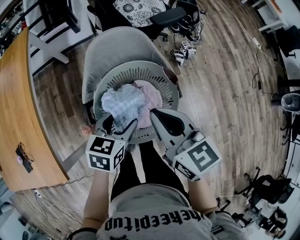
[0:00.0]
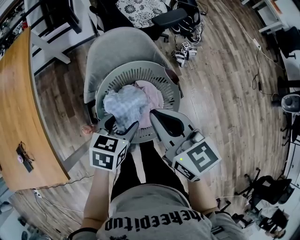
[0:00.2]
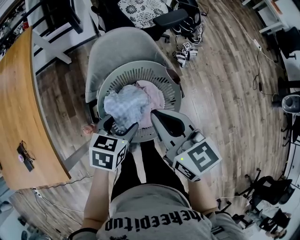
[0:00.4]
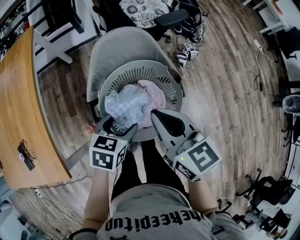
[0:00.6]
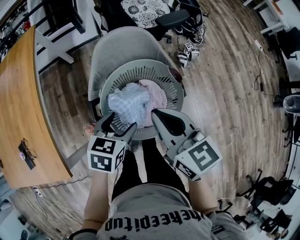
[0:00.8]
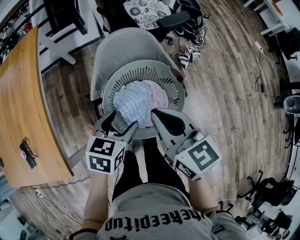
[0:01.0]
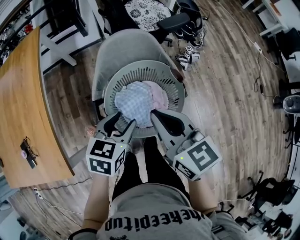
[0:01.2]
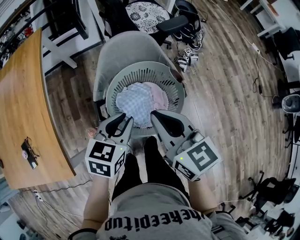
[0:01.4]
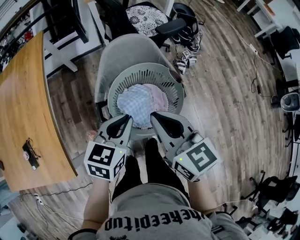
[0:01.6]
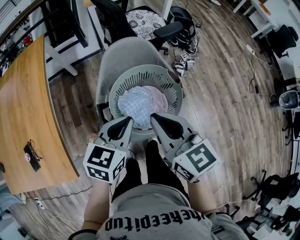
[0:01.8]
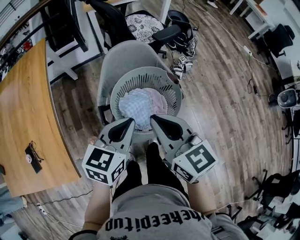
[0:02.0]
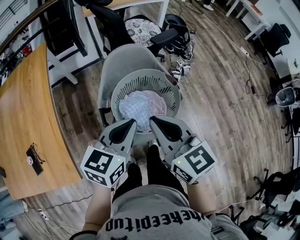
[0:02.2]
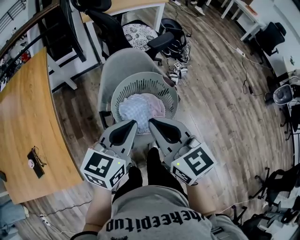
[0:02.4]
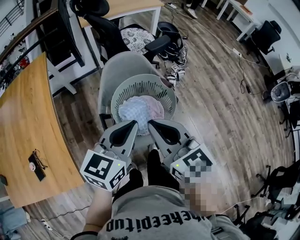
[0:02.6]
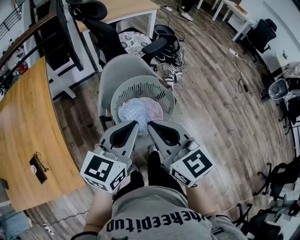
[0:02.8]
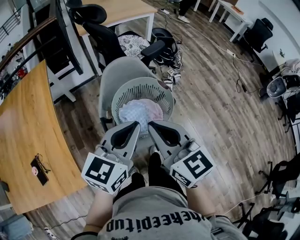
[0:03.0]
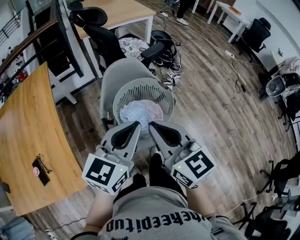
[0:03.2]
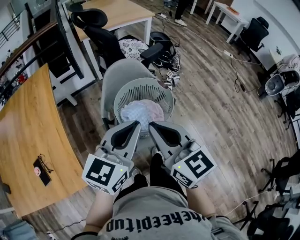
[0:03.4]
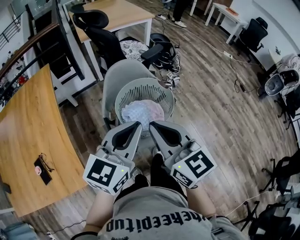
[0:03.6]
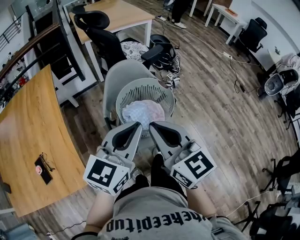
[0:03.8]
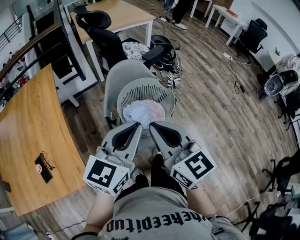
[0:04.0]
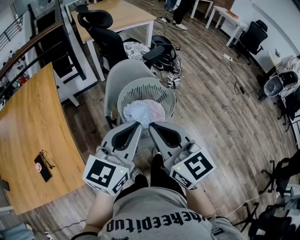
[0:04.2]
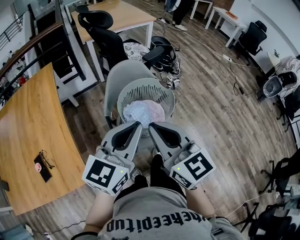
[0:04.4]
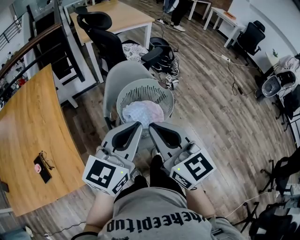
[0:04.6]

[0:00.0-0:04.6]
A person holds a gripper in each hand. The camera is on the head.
0:00.0 to 0:01.6: The right gripper is displaced backward by approximately 5 cm, while the left gripper shifts roughly 10 cm upward, and closes up.
0:01.6 to 0:03.0: The right gripper moves backward and upward, about 10 cm. The left gripper is displaced upward and backward by roughly 15 cm, and rotates some 30 degrees.
0:03.0 to 0:04.6: The two grippers go about 5 cm backward.

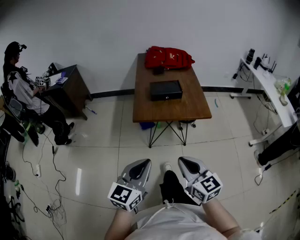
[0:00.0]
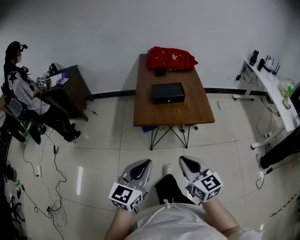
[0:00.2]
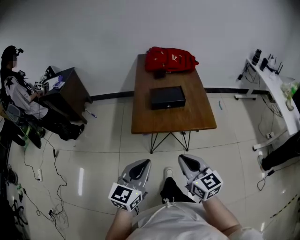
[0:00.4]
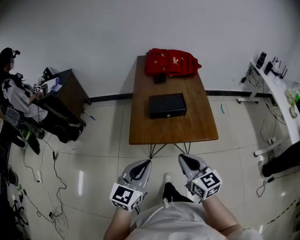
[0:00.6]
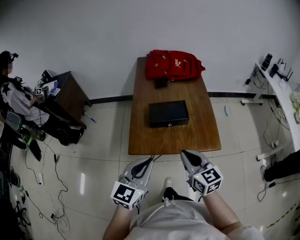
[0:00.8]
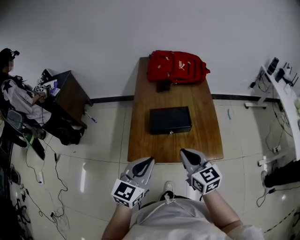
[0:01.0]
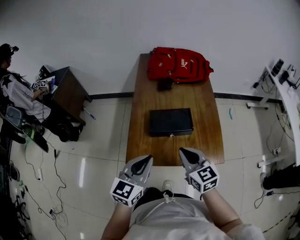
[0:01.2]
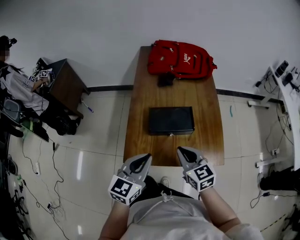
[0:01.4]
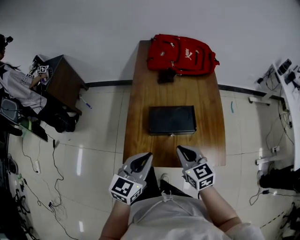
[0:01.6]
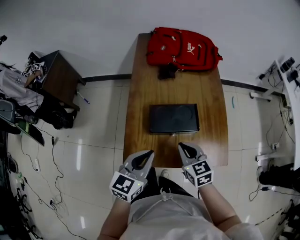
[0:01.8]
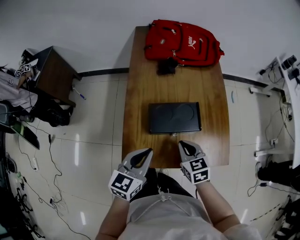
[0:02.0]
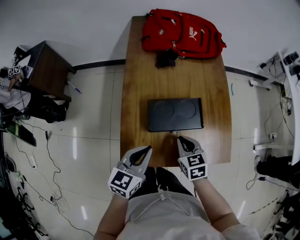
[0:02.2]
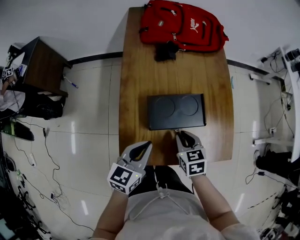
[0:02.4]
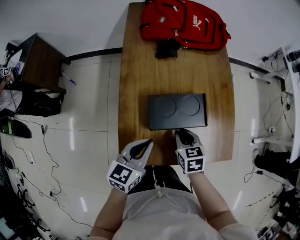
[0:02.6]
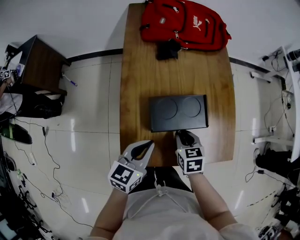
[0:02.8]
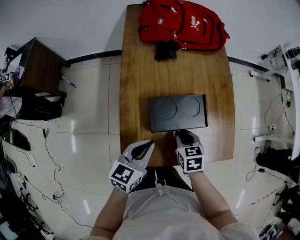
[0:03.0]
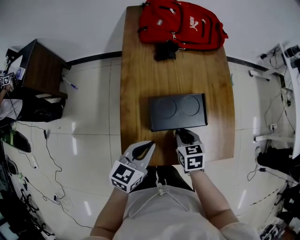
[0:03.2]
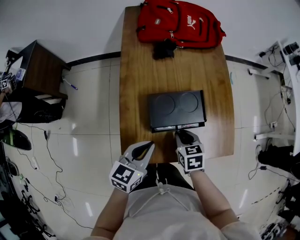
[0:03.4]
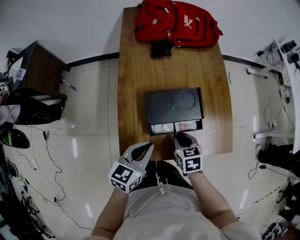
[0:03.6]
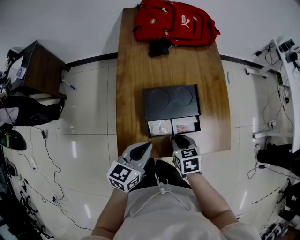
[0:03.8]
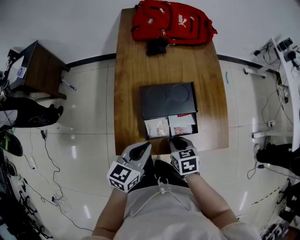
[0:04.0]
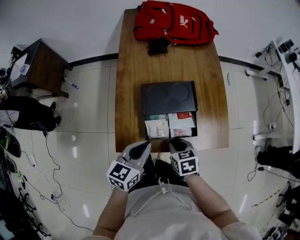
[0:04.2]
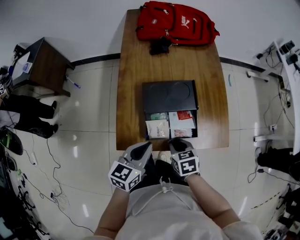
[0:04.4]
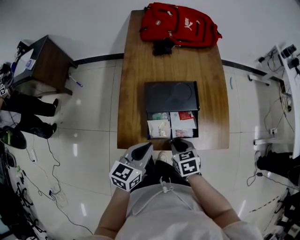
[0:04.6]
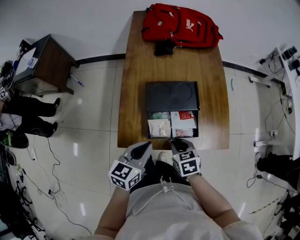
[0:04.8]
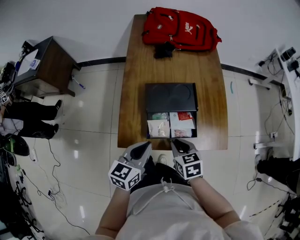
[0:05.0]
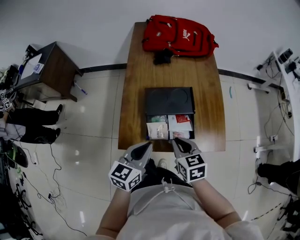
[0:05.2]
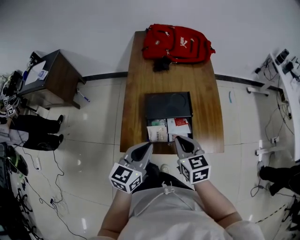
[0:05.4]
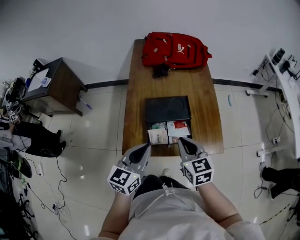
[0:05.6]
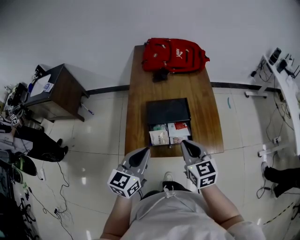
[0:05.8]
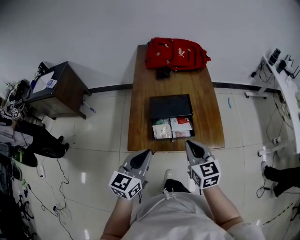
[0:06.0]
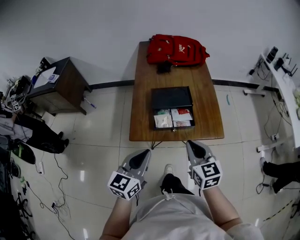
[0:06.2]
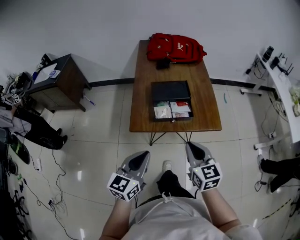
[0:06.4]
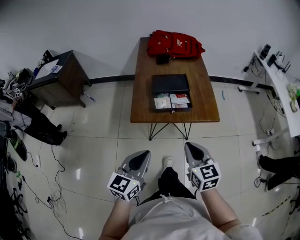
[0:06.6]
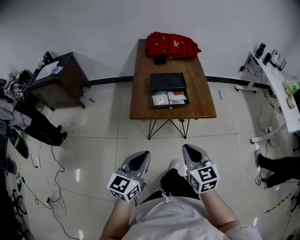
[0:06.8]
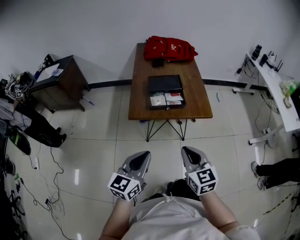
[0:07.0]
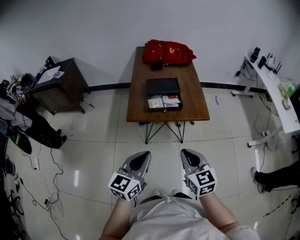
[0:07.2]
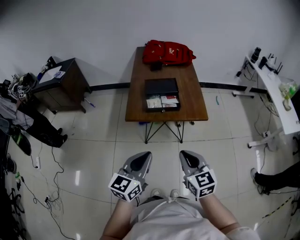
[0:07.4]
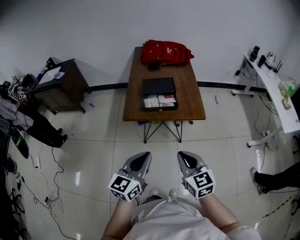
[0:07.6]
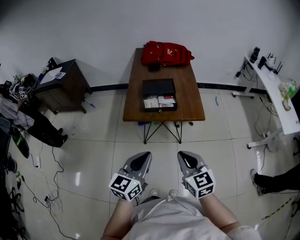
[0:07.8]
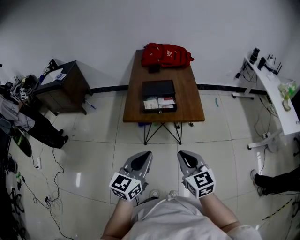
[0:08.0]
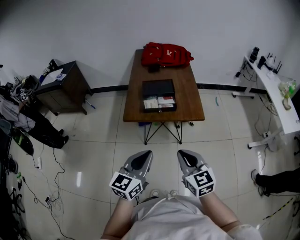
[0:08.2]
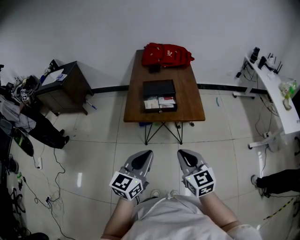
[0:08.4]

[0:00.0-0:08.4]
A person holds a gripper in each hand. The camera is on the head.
0:00.0 to 0:01.4: The pair of grippers is taken forward, roughly 40 cm.
0:01.4 to 0:02.8: Both grippers move downward and forward, about 15 cm. The right gripper swivels about 30 degrees.
0:02.8 to 0:04.2: The right gripper goes roughly 10 cm backward. Meanwhile the left gripper travels backward by about 5 cm.
0:04.2 to 0:05.6: The left gripper is displaced upward by about 10 cm. Meanwhile the right gripper is displaced upward by approximately 20 cm, and swivels approximately 30 degrees.
0:05.6 to 0:07.0: The two grippers go roughly 30 cm backward.
0:07.0 to 0:08.4: The left gripper travels to the right by roughly 10 cm. Meanwhile the right gripper moves roughly 5 cm.

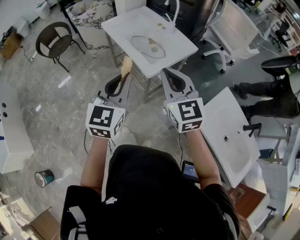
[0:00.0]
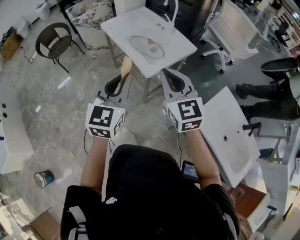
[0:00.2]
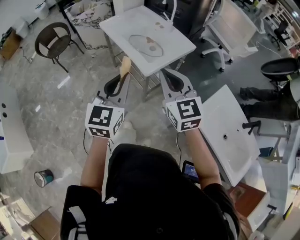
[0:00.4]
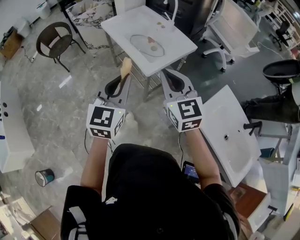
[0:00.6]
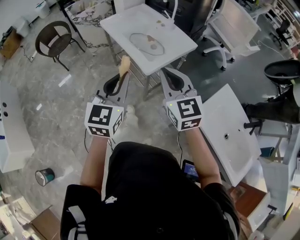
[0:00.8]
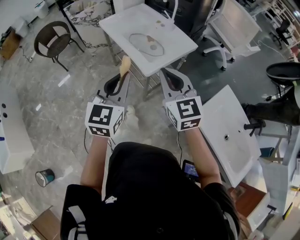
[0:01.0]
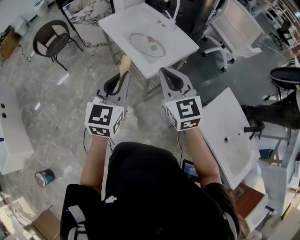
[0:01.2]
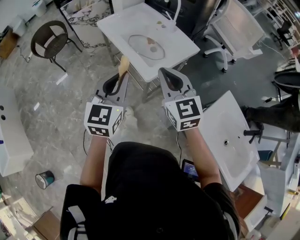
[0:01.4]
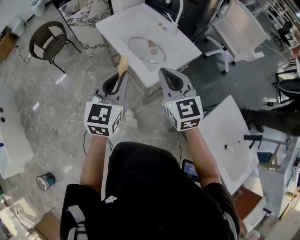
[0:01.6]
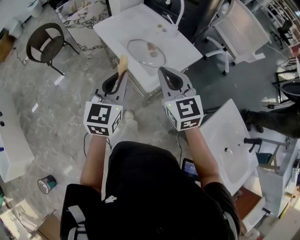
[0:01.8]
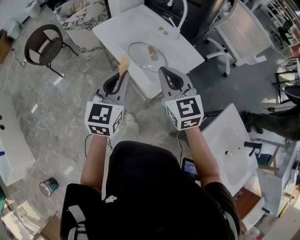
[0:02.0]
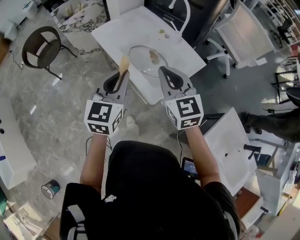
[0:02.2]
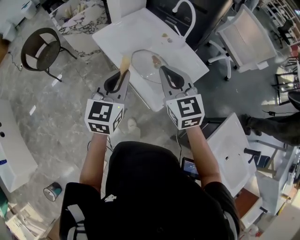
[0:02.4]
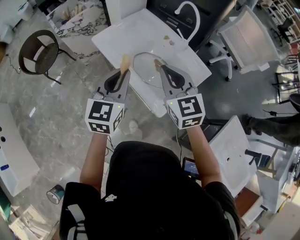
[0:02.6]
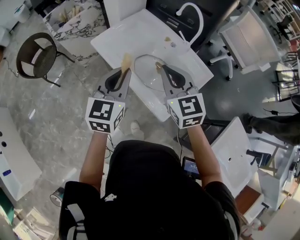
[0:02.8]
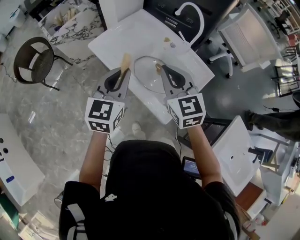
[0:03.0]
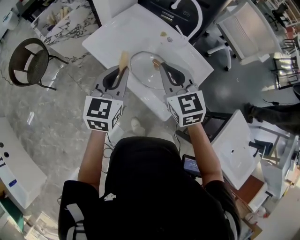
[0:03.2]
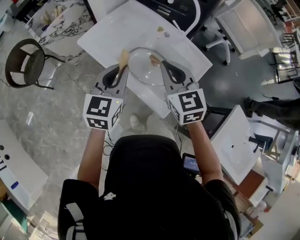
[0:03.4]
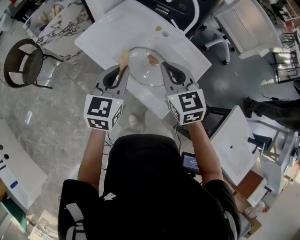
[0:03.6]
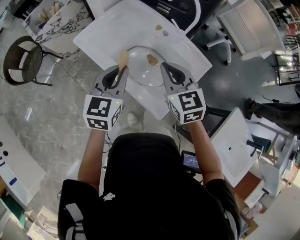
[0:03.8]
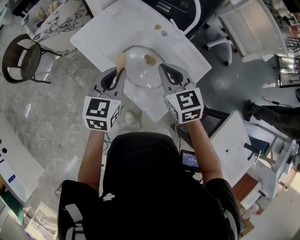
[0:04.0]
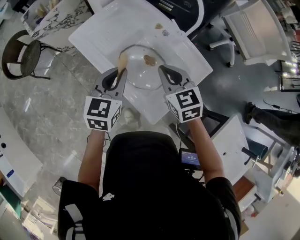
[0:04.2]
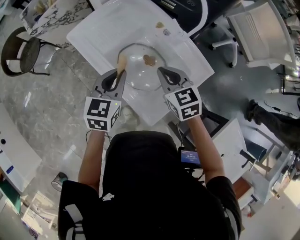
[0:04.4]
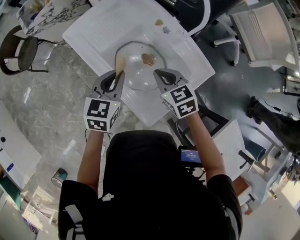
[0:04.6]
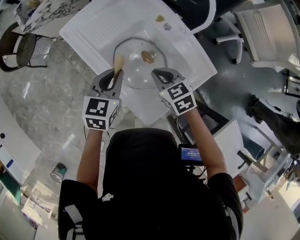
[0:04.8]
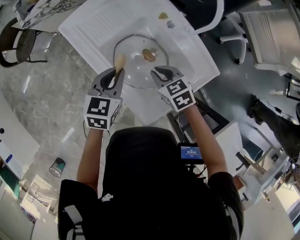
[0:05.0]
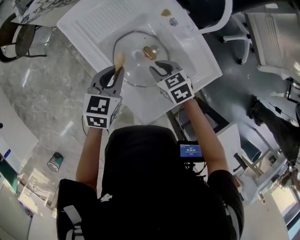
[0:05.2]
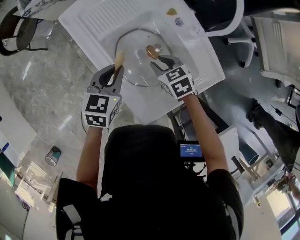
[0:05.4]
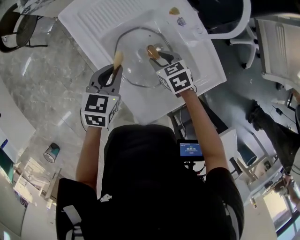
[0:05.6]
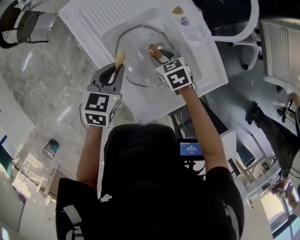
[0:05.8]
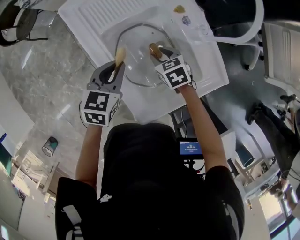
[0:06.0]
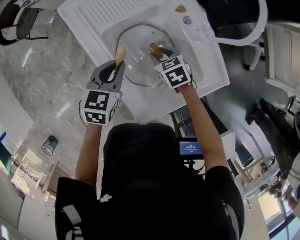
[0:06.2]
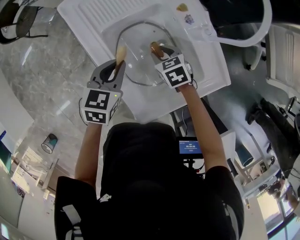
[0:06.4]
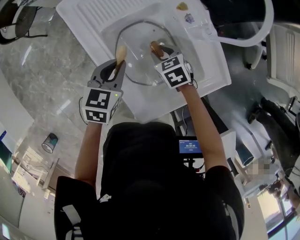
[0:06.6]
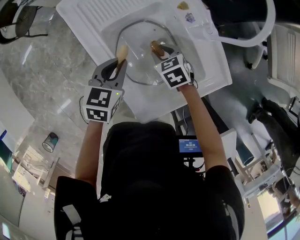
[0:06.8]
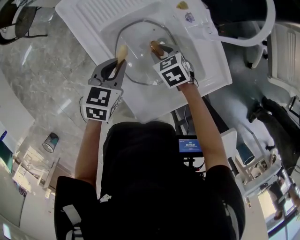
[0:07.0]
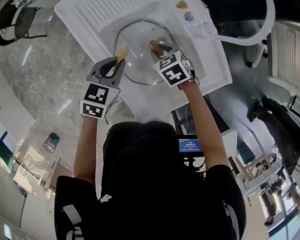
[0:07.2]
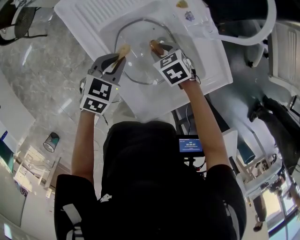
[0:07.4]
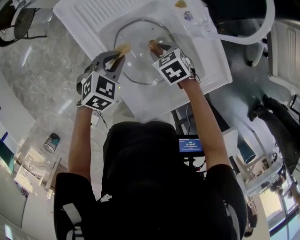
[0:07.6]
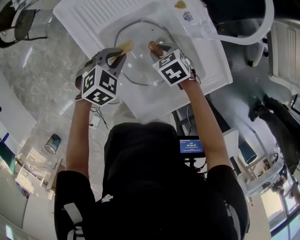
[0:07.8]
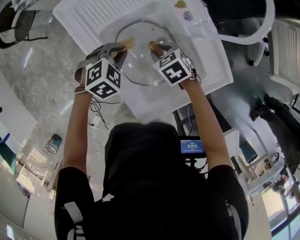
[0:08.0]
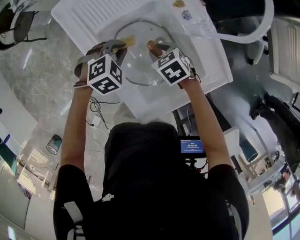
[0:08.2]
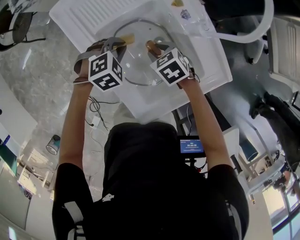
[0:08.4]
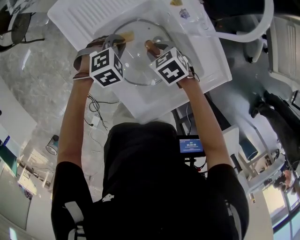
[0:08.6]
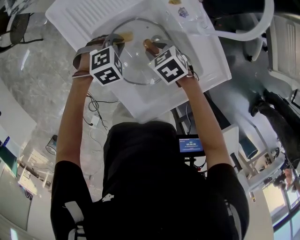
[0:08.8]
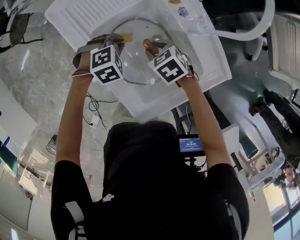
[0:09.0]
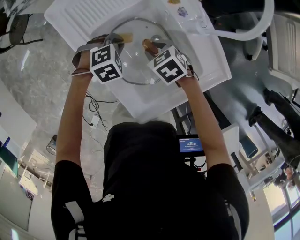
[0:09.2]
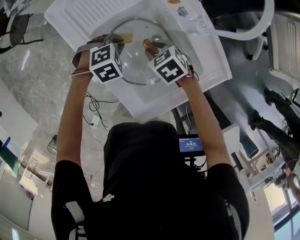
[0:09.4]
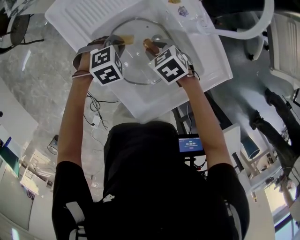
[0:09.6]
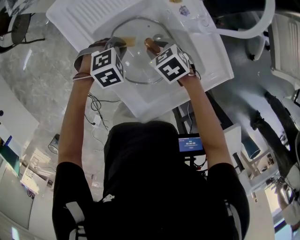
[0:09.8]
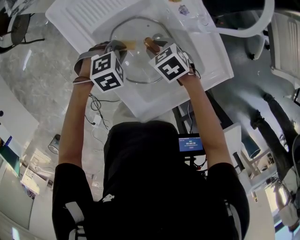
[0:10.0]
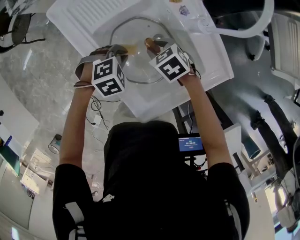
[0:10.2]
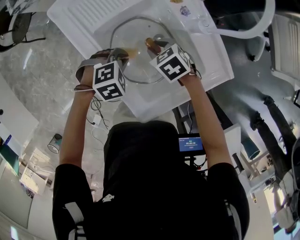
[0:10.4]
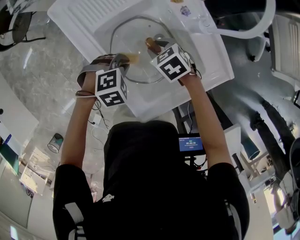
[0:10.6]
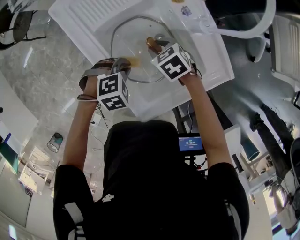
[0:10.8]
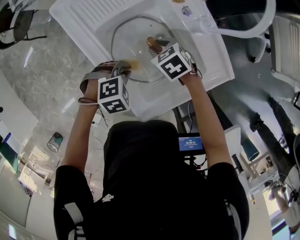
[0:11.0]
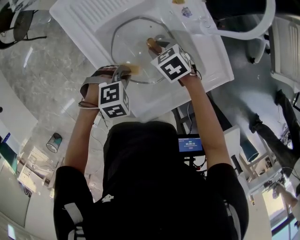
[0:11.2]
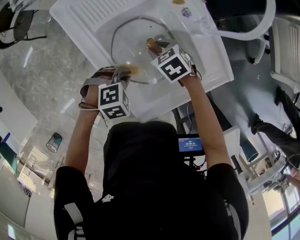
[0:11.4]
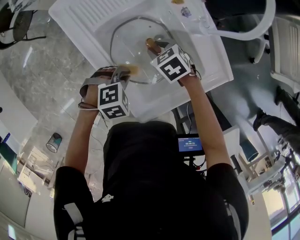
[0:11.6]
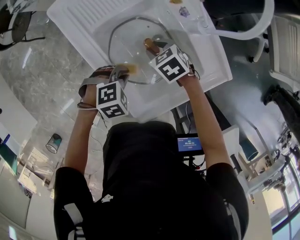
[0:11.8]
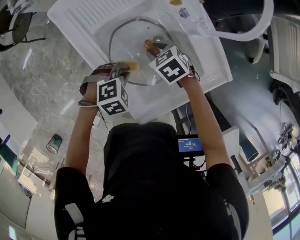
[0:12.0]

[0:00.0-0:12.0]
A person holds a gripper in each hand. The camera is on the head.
0:00.0 to 0:01.6: Both grippers move forward, about 10 cm.
0:01.6 to 0:03.0: The grippers both shift forward by about 30 cm.
0:03.0 to 0:04.4: The left gripper shifts approximately 15 cm downward, forward and to the right. The right gripper is displaced downward, to the right and forward by some 20 cm, and swivels some 20 degrees.
0:04.4 to 0:06.0: The left gripper goes some 10 cm downward. Meanwhile the right gripper travels downward by roughly 20 cm, rotates some 30 degrees, and opens up.
0:06.0 to 0:07.6: The left gripper heads downward, covering roughly 5 cm, and changes its angle by some 30 degrees.
0:07.6 to 0:09.0: The left gripper is displaced downward by some 5 cm, and swivels roughly 30 degrees.
0:09.0 to 0:10.4: The left gripper shifts by some 5 cm.
